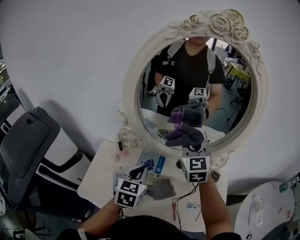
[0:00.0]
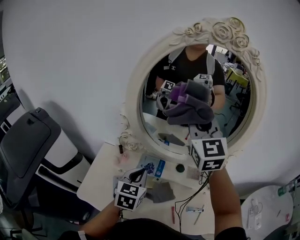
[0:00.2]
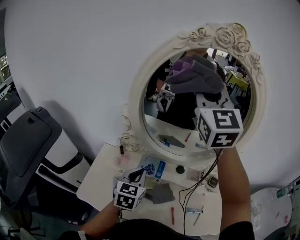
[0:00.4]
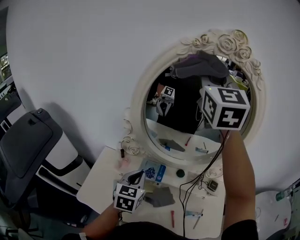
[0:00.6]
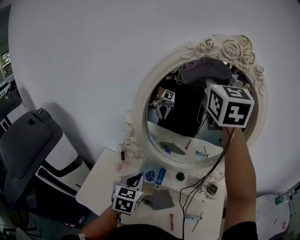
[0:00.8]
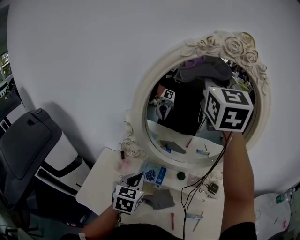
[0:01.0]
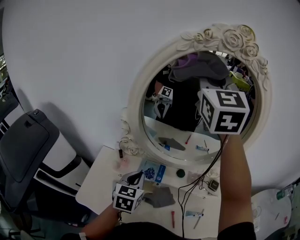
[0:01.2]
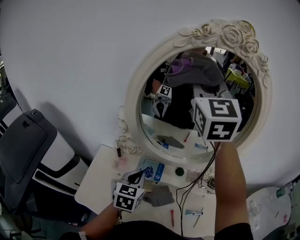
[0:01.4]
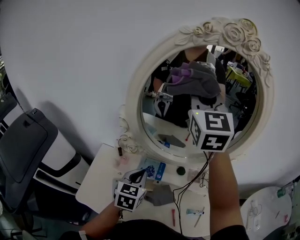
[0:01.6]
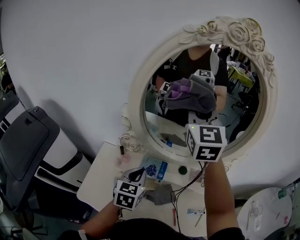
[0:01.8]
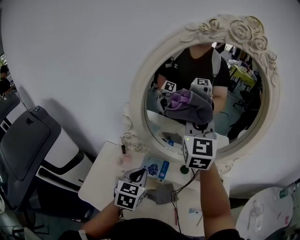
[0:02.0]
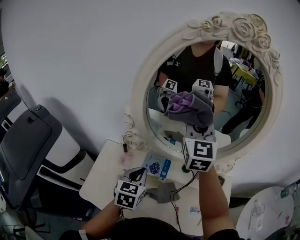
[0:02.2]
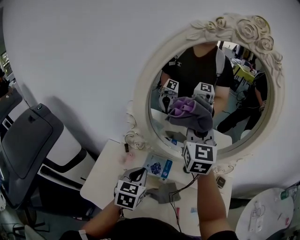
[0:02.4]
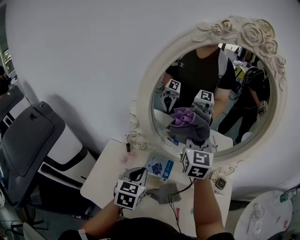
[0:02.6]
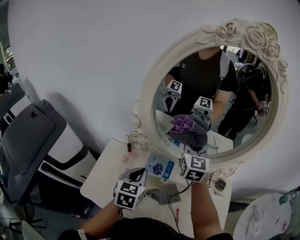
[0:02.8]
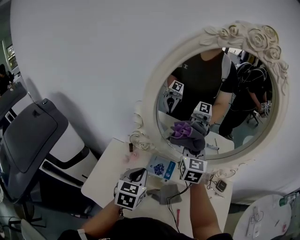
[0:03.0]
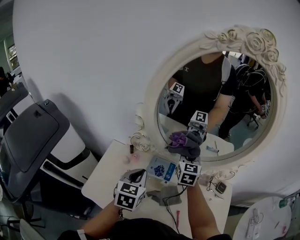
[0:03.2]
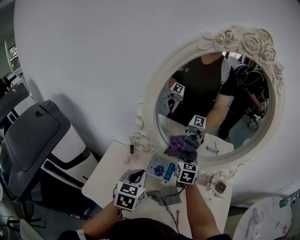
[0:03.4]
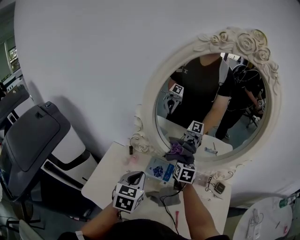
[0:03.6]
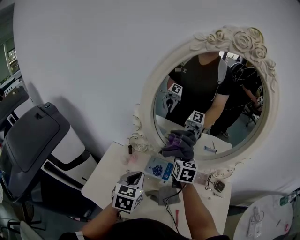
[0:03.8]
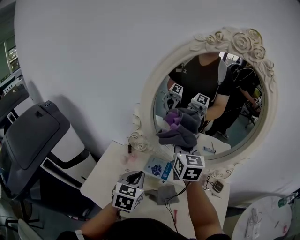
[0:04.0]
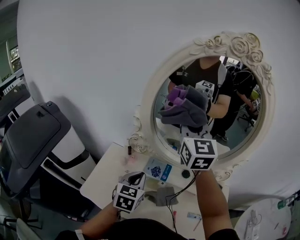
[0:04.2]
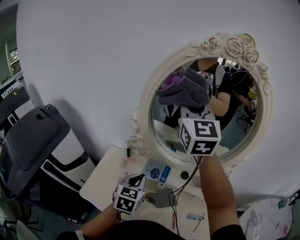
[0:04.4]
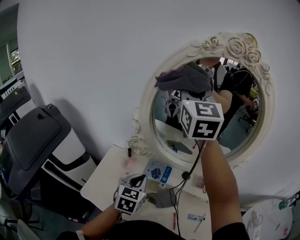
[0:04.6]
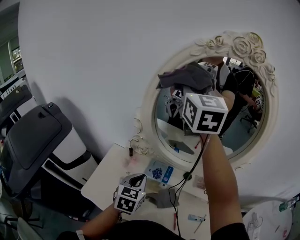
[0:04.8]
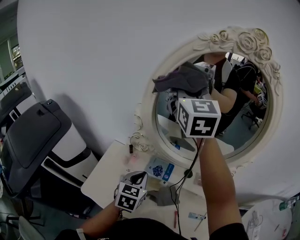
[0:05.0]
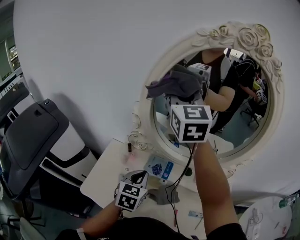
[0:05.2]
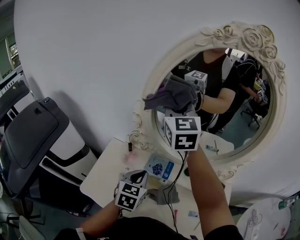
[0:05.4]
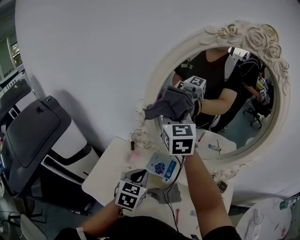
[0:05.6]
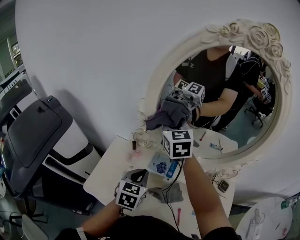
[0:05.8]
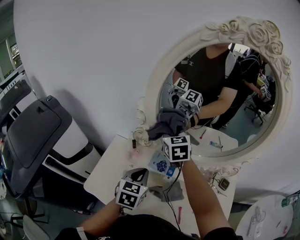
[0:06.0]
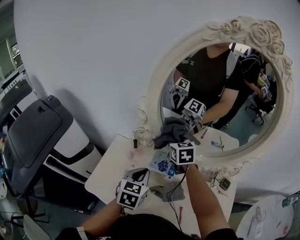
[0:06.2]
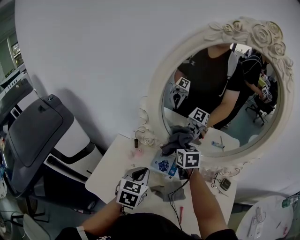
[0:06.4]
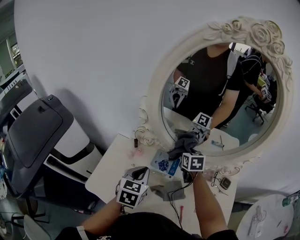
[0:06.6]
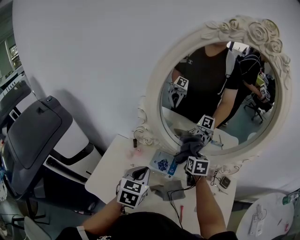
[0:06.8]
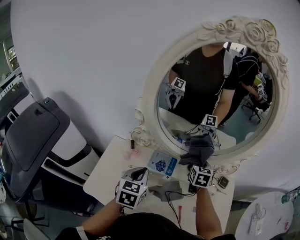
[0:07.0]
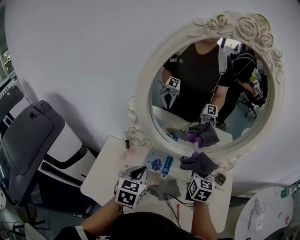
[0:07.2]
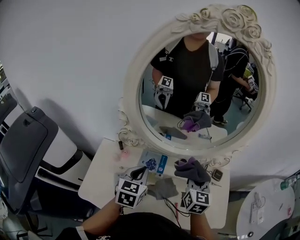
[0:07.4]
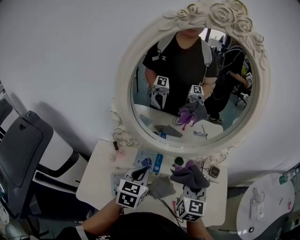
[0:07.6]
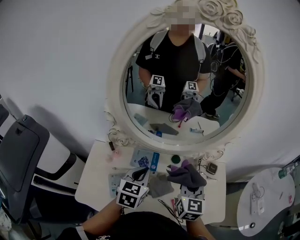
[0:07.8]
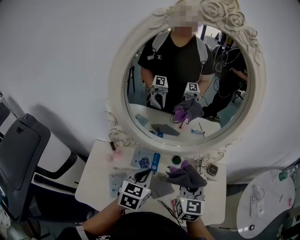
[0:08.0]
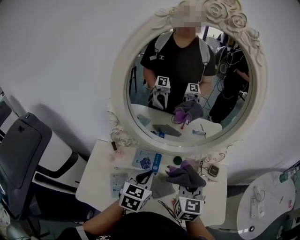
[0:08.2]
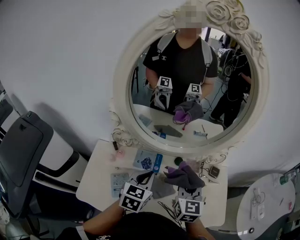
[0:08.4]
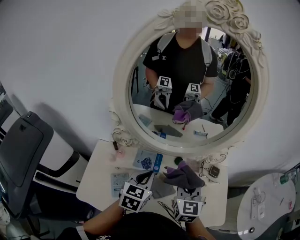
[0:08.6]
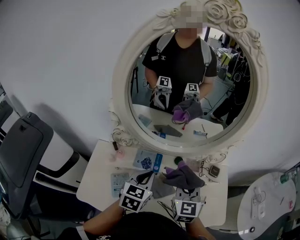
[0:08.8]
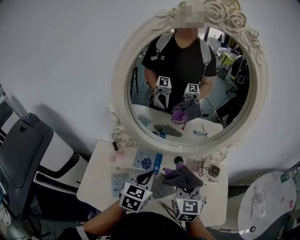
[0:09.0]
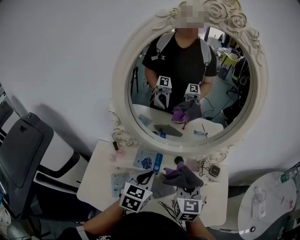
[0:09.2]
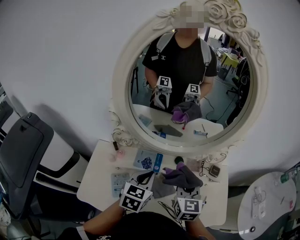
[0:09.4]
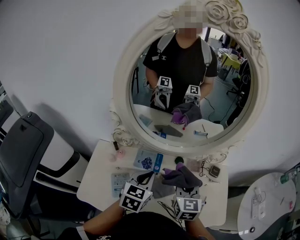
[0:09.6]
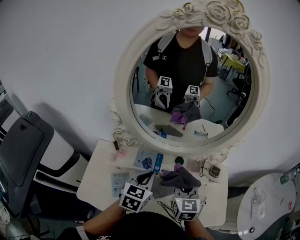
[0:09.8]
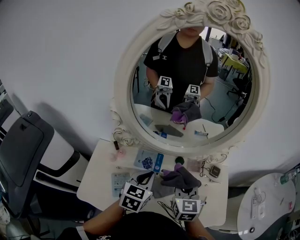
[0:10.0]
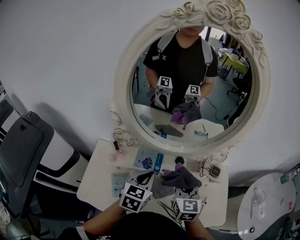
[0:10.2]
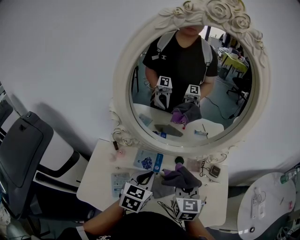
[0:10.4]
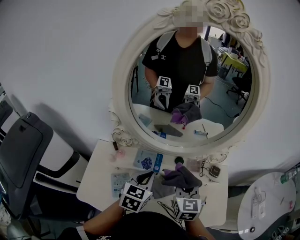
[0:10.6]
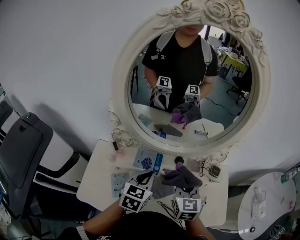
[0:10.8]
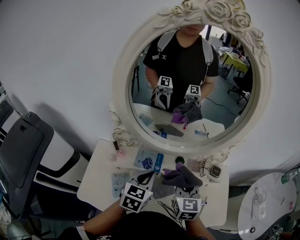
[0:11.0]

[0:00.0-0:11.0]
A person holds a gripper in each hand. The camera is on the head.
0.0 to 1.6 s: The right gripper is displaced upward by some 25 cm.
1.6 to 3.2 s: The right gripper moves downward, approximately 35 cm, and rotates approximately 30 degrees.
3.2 to 4.8 s: The right gripper shifts approximately 35 cm upward, and swivels some 30 degrees.
4.8 to 6.2 s: The right gripper goes about 35 cm downward, and tips its fingers downward by approximately 40 degrees.
6.2 to 7.8 s: The left gripper goes approximately 10 cm to the right. The right gripper is displaced to the right and backward by some 30 cm, and rotates some 40 degrees.
7.8 to 11.0 s: The grippers move only a little.

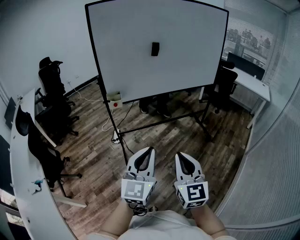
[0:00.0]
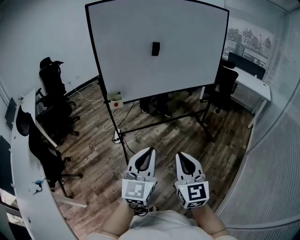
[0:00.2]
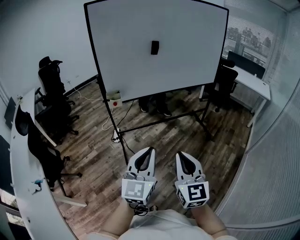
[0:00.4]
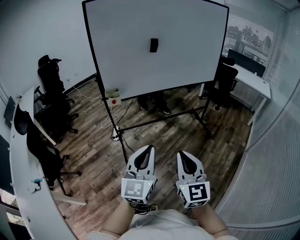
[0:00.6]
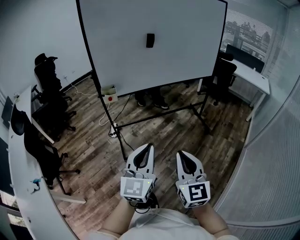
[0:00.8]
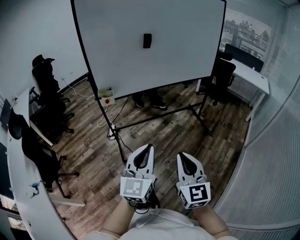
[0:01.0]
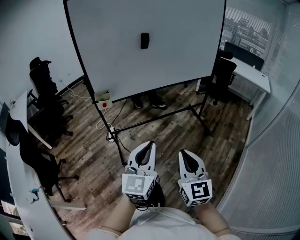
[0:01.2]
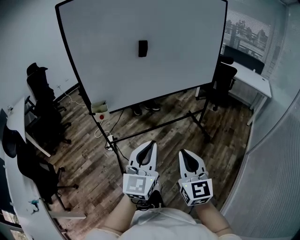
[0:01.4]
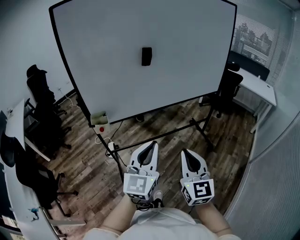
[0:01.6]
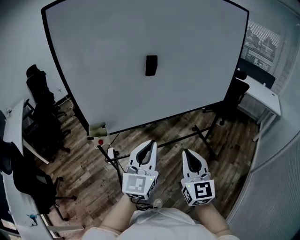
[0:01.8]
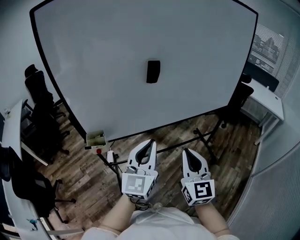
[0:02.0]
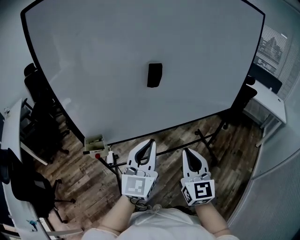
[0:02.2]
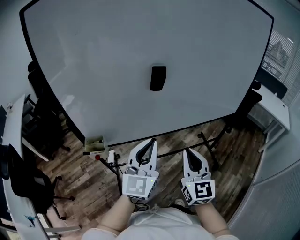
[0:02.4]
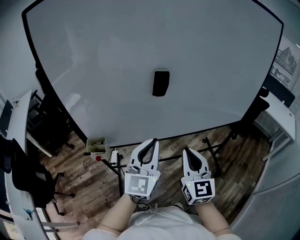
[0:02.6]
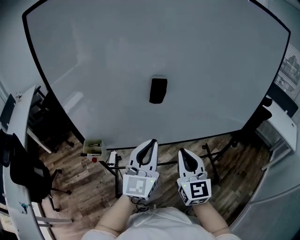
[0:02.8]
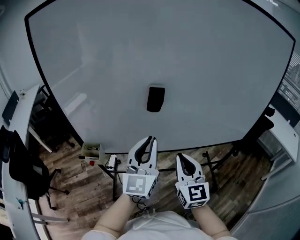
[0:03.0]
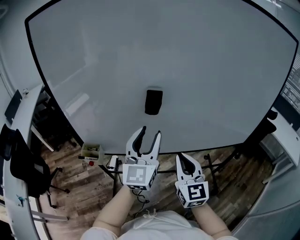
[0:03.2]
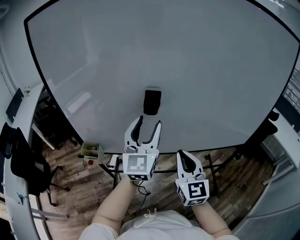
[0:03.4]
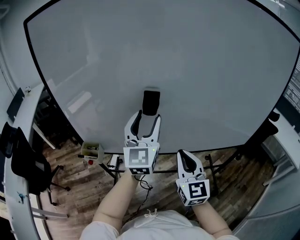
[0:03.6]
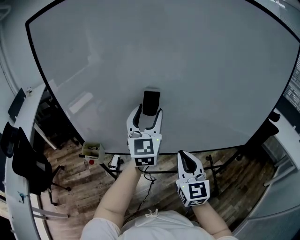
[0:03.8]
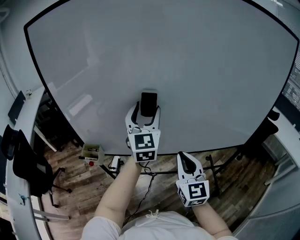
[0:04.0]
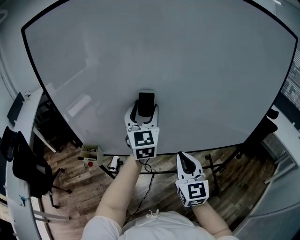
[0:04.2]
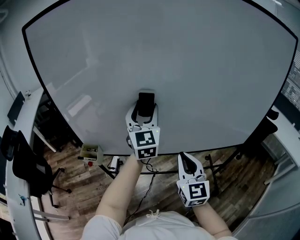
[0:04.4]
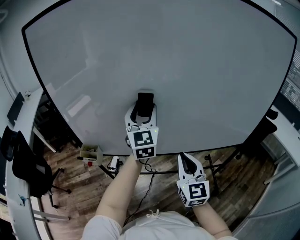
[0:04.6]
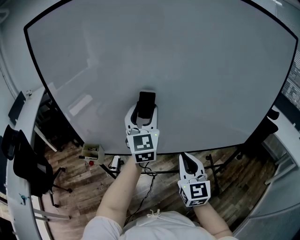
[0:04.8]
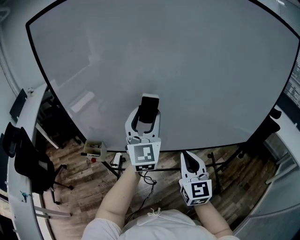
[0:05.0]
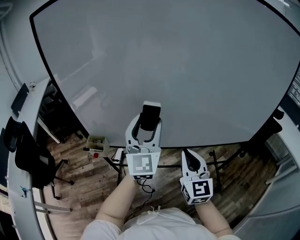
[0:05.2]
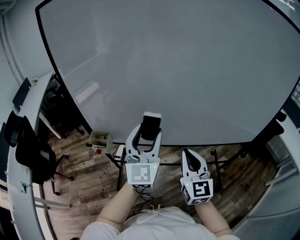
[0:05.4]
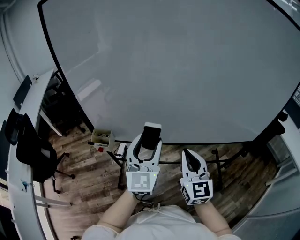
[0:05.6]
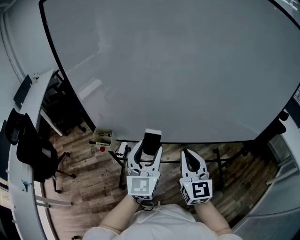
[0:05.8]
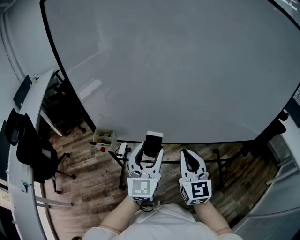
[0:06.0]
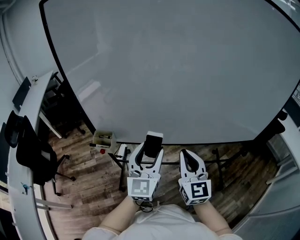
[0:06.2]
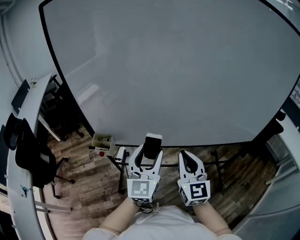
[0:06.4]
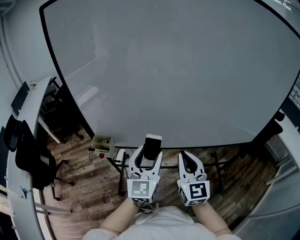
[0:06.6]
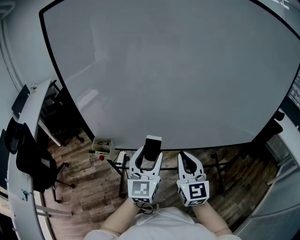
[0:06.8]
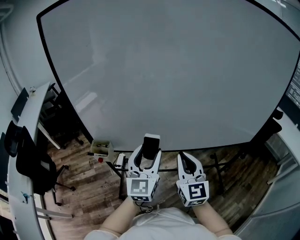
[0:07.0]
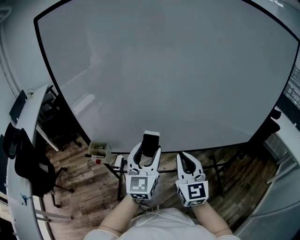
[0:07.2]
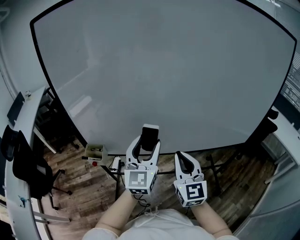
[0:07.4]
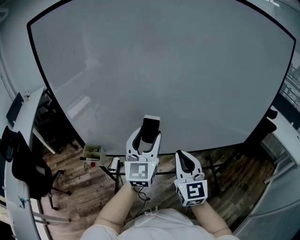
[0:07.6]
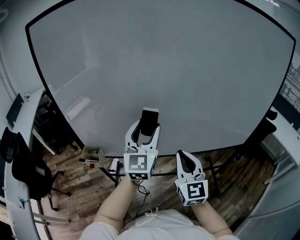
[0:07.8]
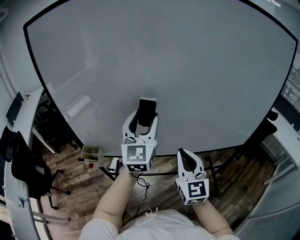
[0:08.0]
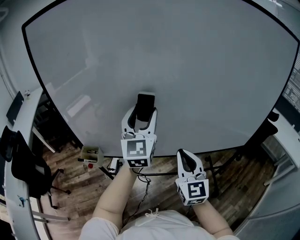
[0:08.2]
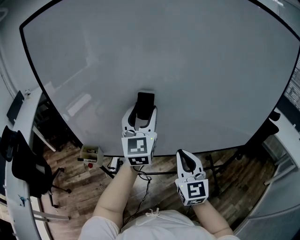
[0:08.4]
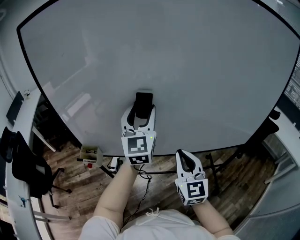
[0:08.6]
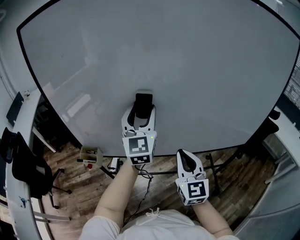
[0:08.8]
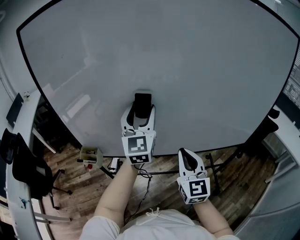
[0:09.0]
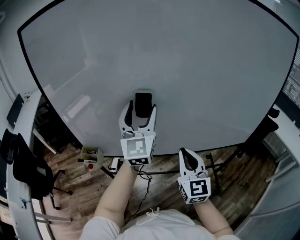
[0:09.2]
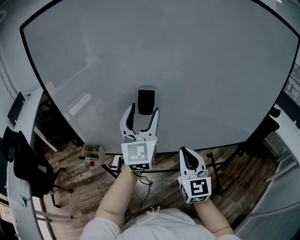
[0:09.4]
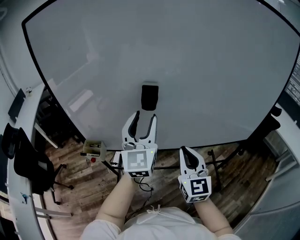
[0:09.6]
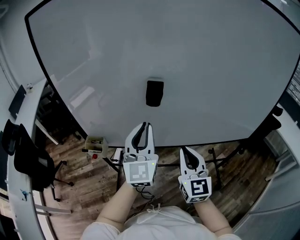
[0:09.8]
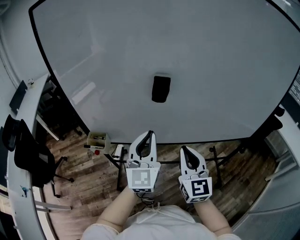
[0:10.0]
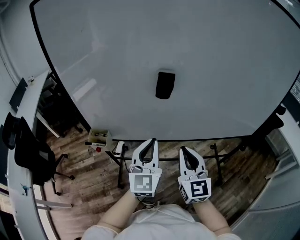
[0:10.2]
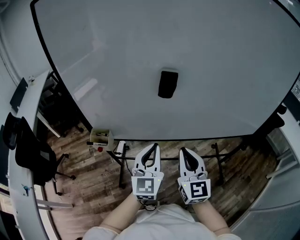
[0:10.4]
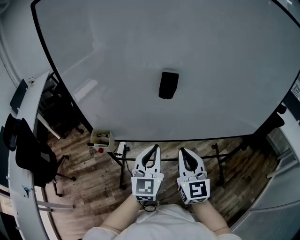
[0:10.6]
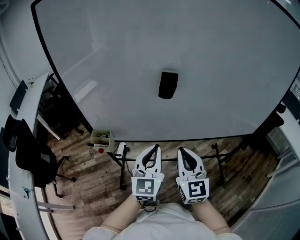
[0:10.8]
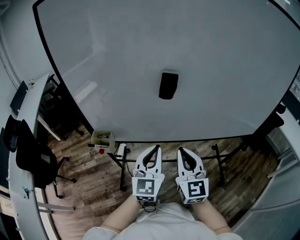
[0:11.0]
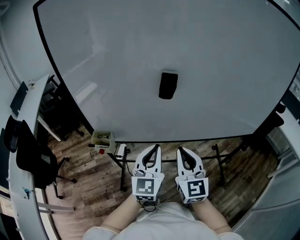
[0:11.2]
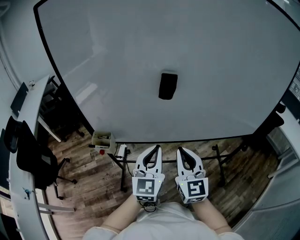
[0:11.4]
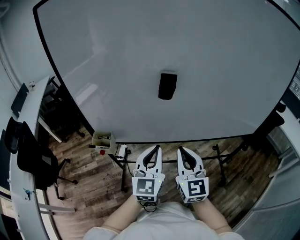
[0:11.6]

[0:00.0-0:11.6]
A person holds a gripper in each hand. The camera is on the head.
0.0 to 1.4 s: Both grippers move forward, roughly 15 cm.
1.4 to 2.8 s: Both grippers travel together forward, roughly 40 cm.
2.8 to 4.4 s: The left gripper is displaced forward and upward by about 20 cm, swivels roughly 20 degrees, and opens its fingers. The right gripper travels to the right by about 5 cm.
4.4 to 5.8 s: The right gripper heads to the left, covering approximately 5 cm. Meanwhile the left gripper goes roughly 20 cm backward, downward and to the left.
5.8 to 7.2 s: The grippers stay close to where they were, moving slightly.
7.2 to 8.8 s: The right gripper moves about 5 cm. Meanwhile the left gripper is displaced forward and upward by about 15 cm.
8.8 to 10.2 s: The left gripper goes approximately 20 cm backward and downward, and closes up. Meanwhile the right gripper heads to the left, covering roughly 5 cm.
10.2 to 11.6 s: The grippers make only small movements.

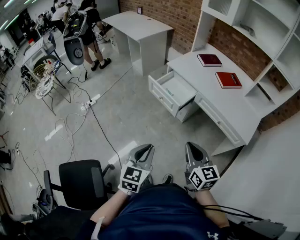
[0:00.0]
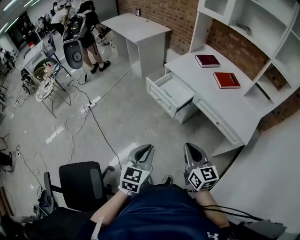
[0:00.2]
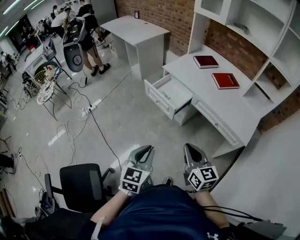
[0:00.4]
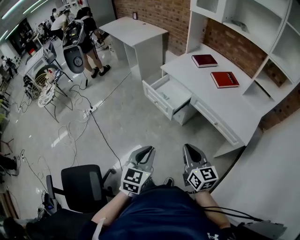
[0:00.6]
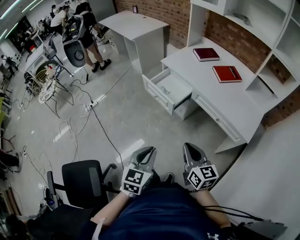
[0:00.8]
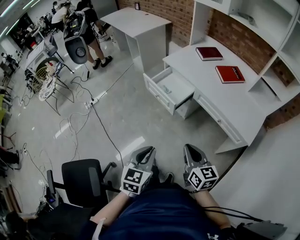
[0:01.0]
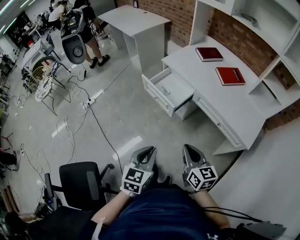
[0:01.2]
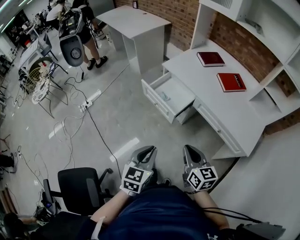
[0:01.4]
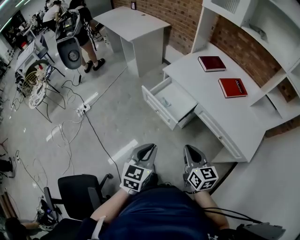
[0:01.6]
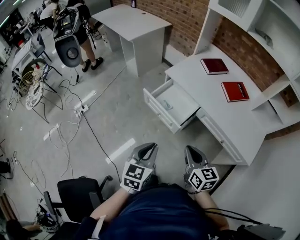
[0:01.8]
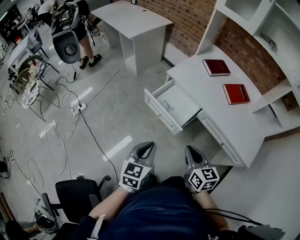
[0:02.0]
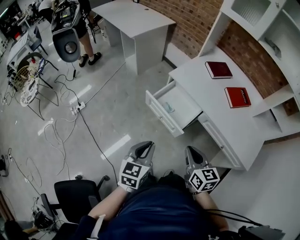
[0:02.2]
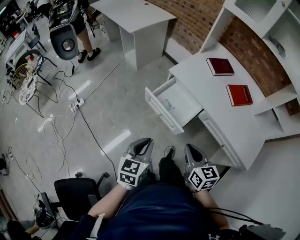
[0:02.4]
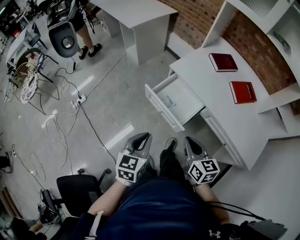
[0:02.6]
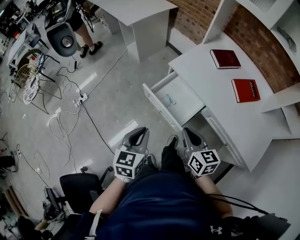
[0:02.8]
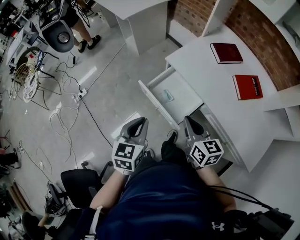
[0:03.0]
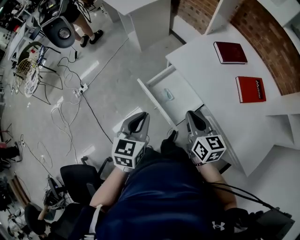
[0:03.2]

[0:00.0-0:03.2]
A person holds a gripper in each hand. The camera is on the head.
0.0 to 1.6 s: The grippers both shift forward by roughly 15 cm.
1.6 to 3.2 s: Both grippers travel together forward, about 25 cm.
